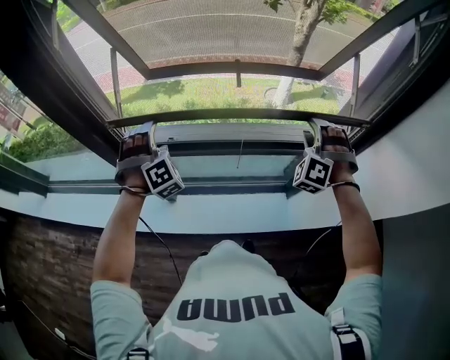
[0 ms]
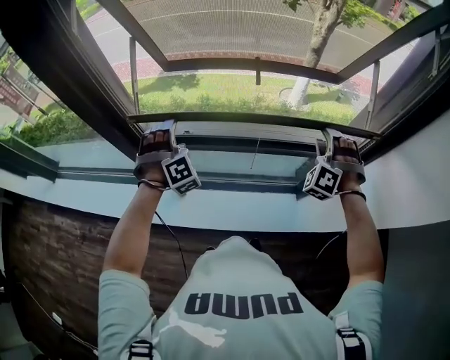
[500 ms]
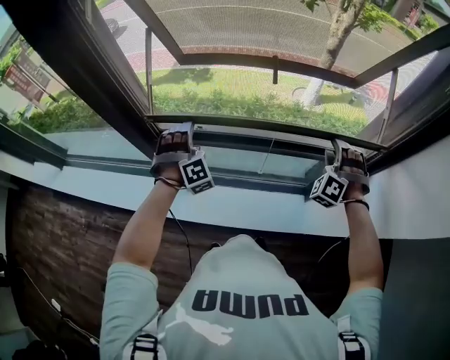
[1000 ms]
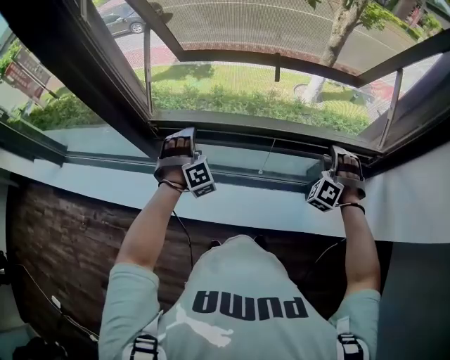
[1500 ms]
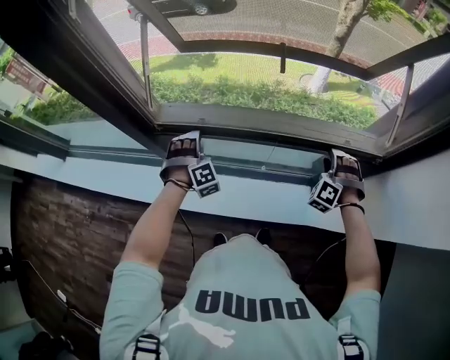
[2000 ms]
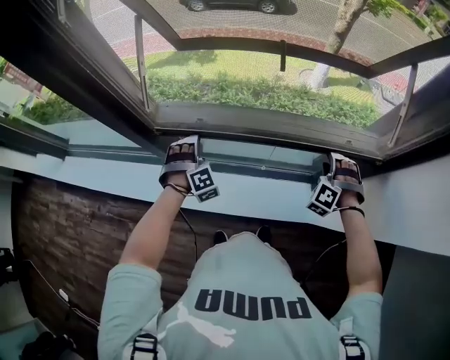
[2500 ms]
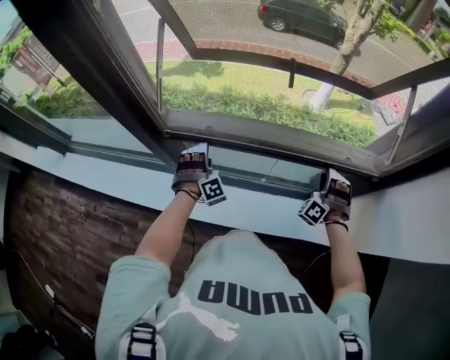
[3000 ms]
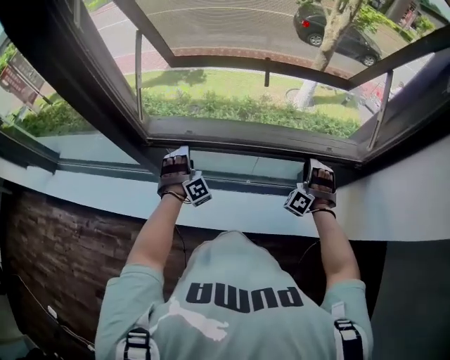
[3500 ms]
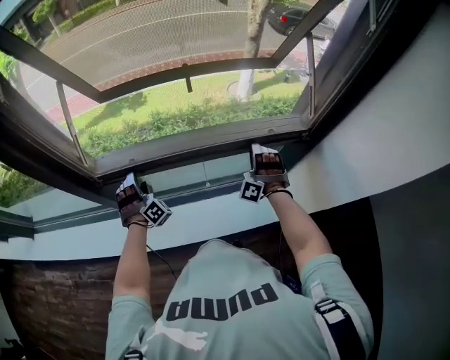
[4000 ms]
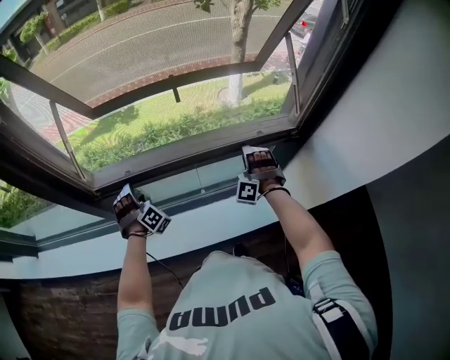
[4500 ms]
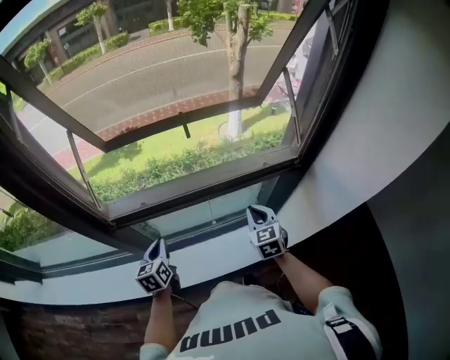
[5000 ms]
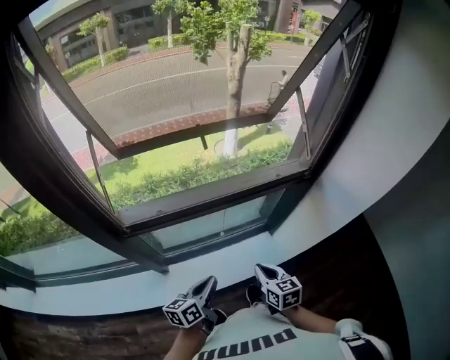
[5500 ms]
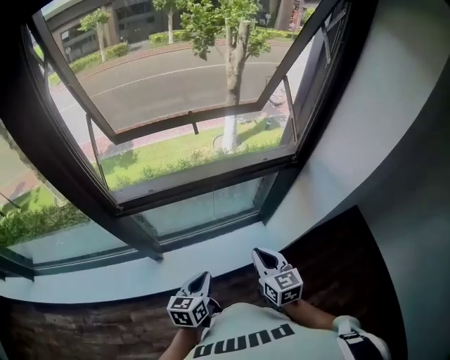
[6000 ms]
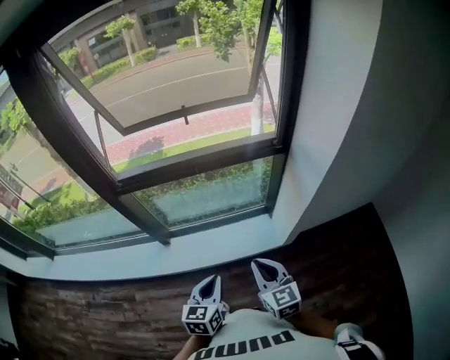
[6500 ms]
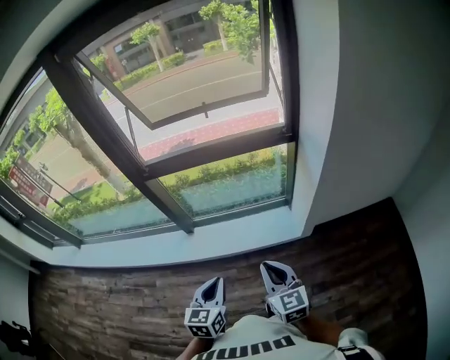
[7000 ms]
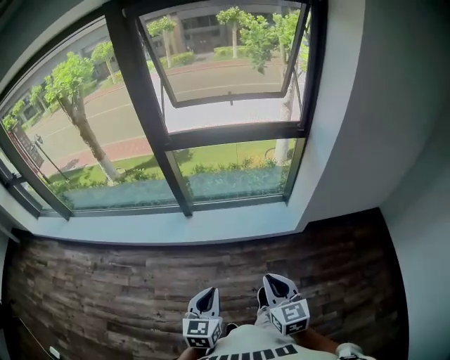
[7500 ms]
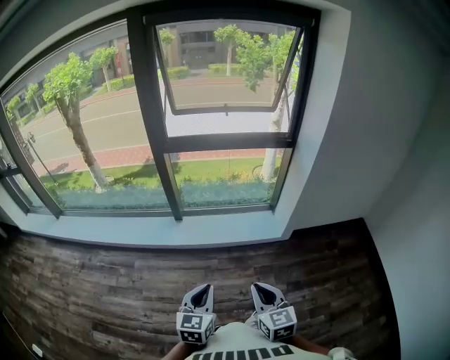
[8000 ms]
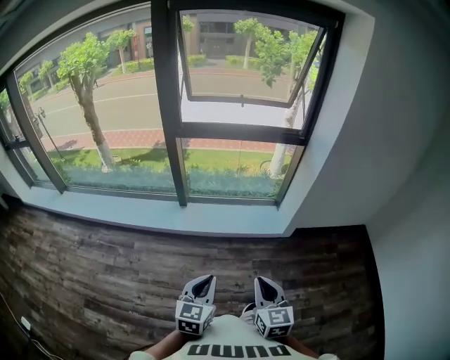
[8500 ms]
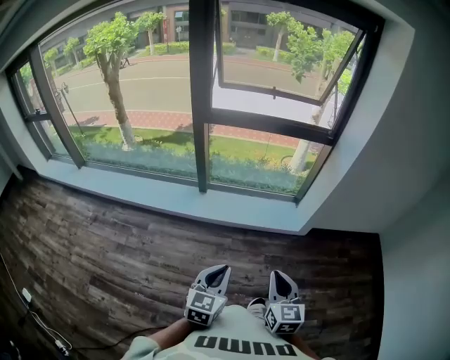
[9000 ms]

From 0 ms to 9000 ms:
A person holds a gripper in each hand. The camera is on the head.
From 0 ms to 2000 ms: The two grippers go roughly 15 cm downward.
From 4500 ms to 7000 ms: The pair of grippers is taken roughly 60 cm. The right gripper rotates around the line of its fingers by about 80 degrees, clockwise from behind, and closes up, while the left gripper rolls counterclockwise, seen from behind, by about 70 degrees, and closes its fingers.
From 7000 ms to 9000 ms: The two grippers go some 30 cm backward and to the left.

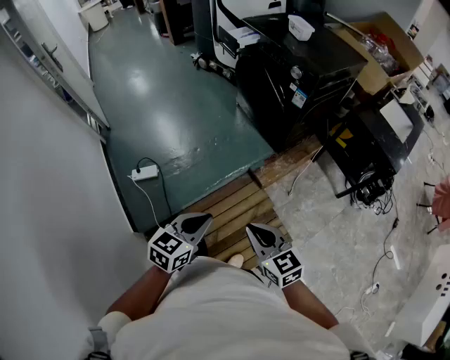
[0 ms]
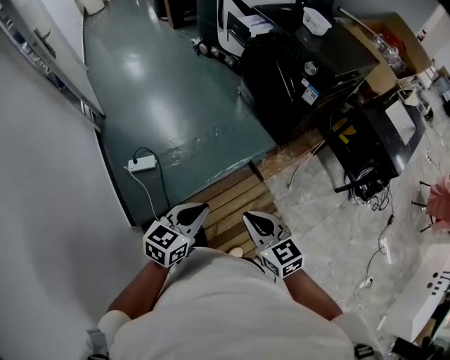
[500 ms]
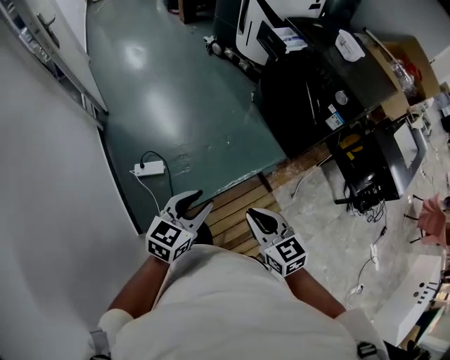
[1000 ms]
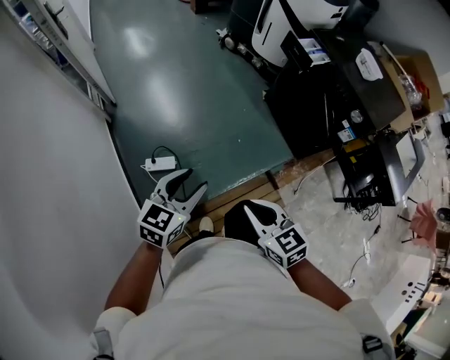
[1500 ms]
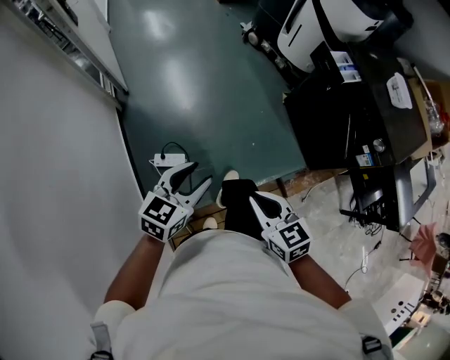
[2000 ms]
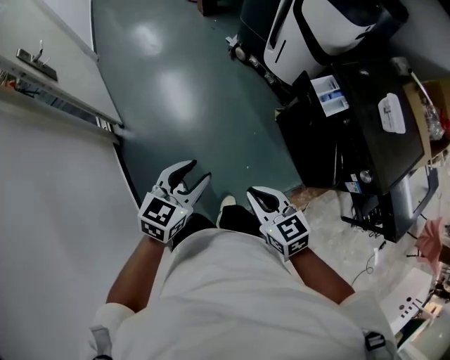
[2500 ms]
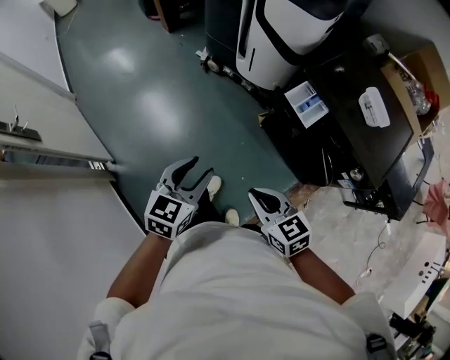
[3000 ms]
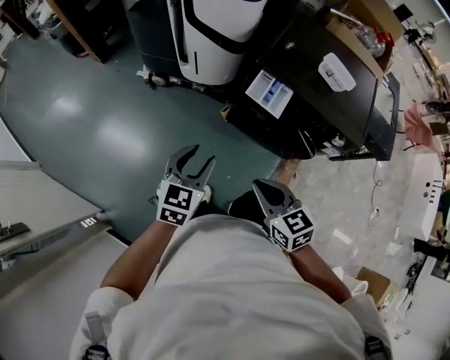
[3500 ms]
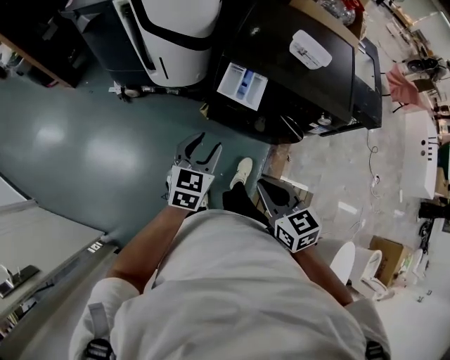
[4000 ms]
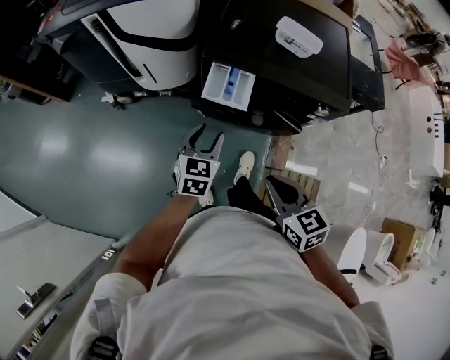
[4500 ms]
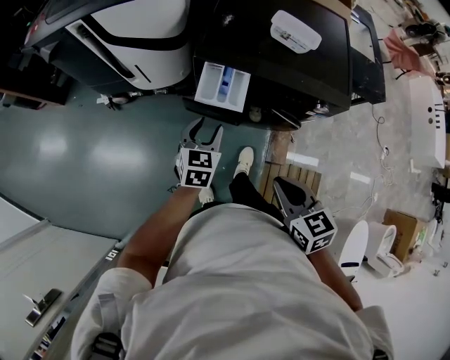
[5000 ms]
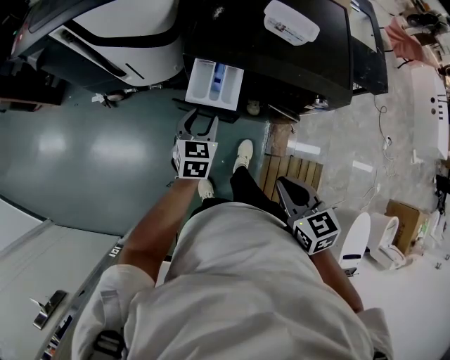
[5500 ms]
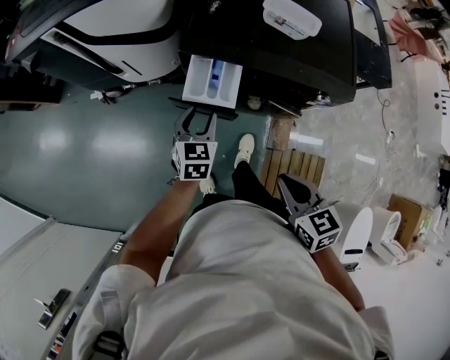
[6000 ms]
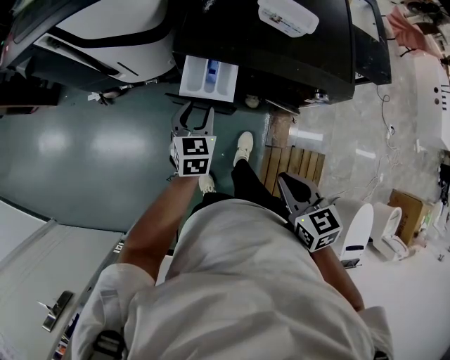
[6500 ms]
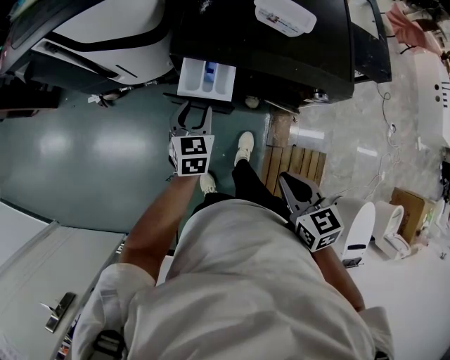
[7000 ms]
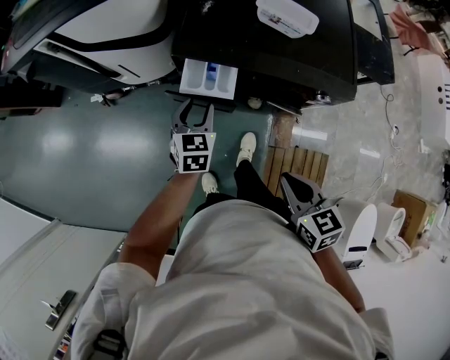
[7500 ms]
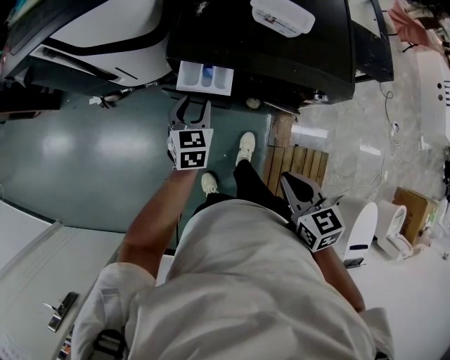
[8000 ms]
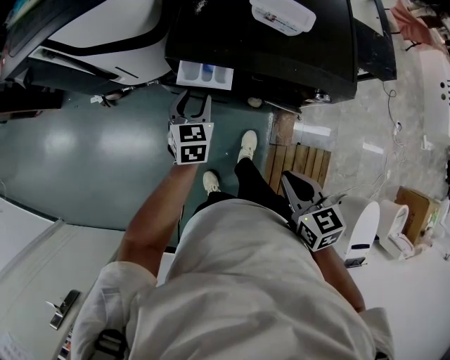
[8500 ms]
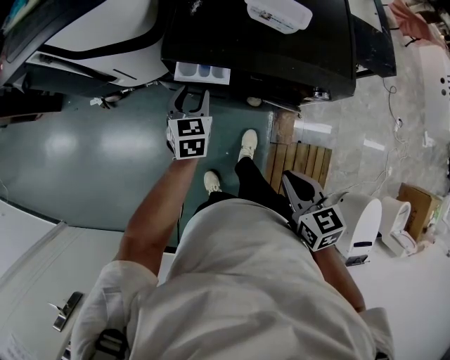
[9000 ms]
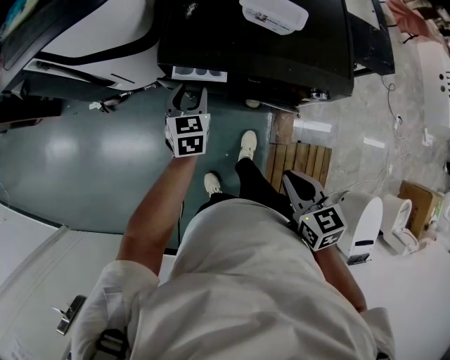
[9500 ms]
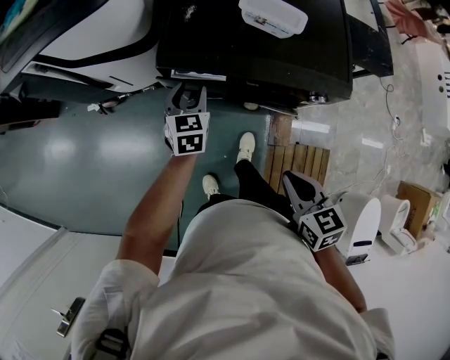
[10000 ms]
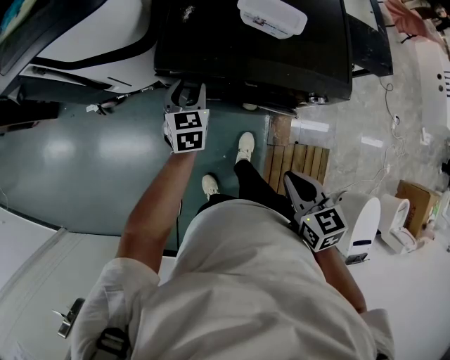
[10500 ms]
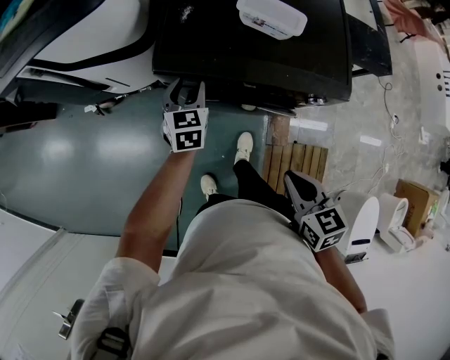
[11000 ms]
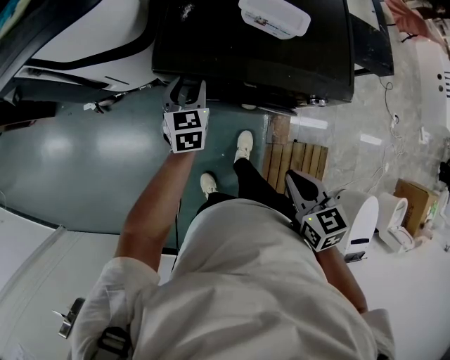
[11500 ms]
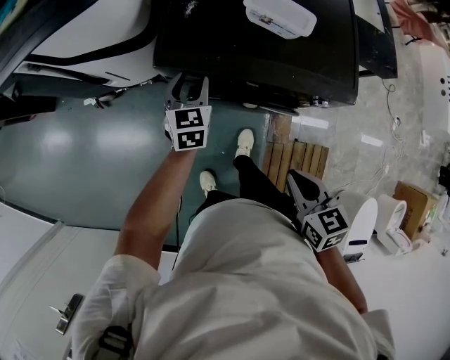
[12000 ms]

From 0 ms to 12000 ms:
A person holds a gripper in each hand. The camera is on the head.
From 0 ms to 2000 ms: The pair of grippers is taken forward and to the left, roughly 50 cm. The left gripper opens.
From 2000 ms to 4000 ms: The right gripper shifts by roughly 40 cm, and turns by about 60 degrees, while the left gripper moves roughly 50 cm, and swivels some 40 degrees.
From 4000 ms to 6000 ms: The right gripper travels to the right and forward by roughly 15 cm. The left gripper is displaced forward, downward and to the right by some 20 cm.
From 6000 ms to 8000 ms: The left gripper shifts by about 5 cm.
From 8000 ms to 10000 ms: The left gripper goes roughly 5 cm forward.
From 10000 ms to 12000 ms: The grippers stay close to where they were, moving slightly.

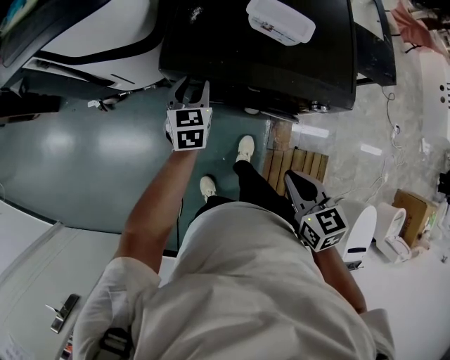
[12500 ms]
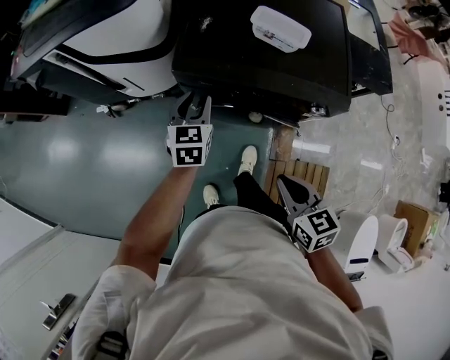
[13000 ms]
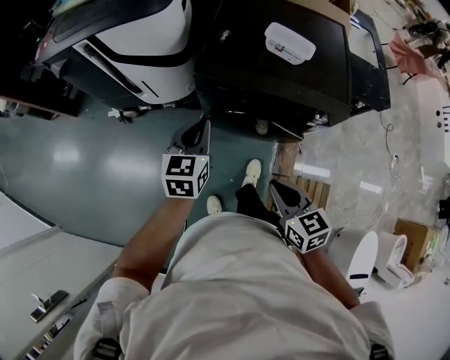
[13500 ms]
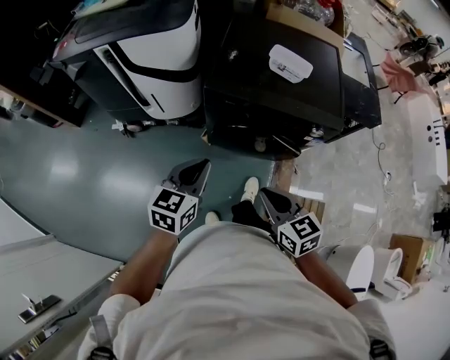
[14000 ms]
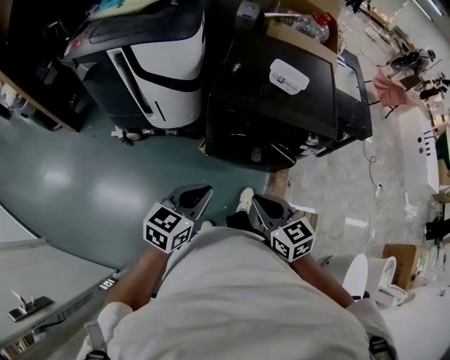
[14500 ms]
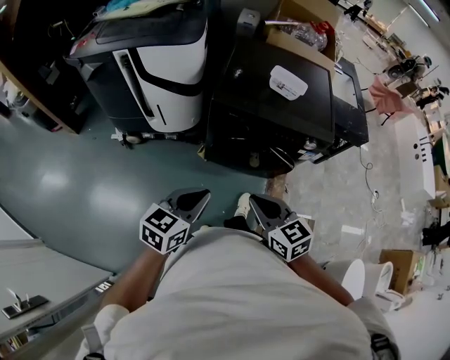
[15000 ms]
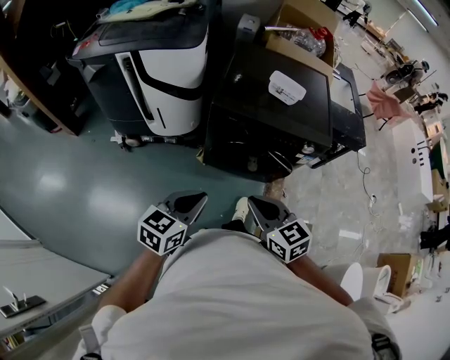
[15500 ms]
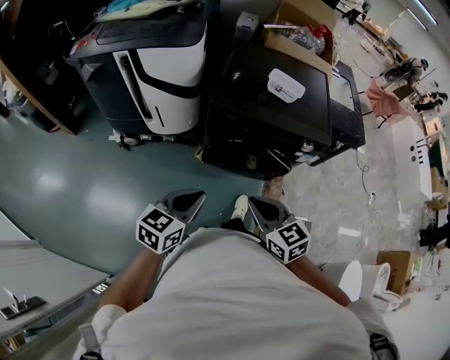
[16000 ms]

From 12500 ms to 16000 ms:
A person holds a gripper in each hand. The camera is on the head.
From 12500 ms to 14500 ms: The left gripper heads backward and upward, covering some 35 cm, changes its angle by roughly 30 degrees, and closes up. The right gripper is displaced to the left, backward and upward by about 20 cm.
From 14500 ms to 16000 ms: The grippers stay close to where they were, moving slightly.

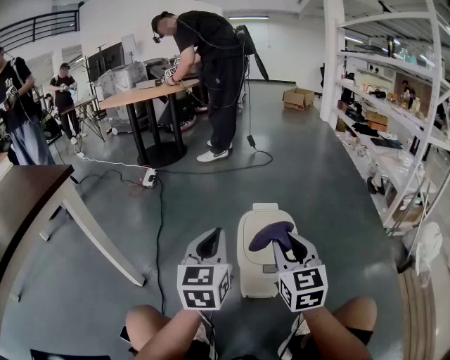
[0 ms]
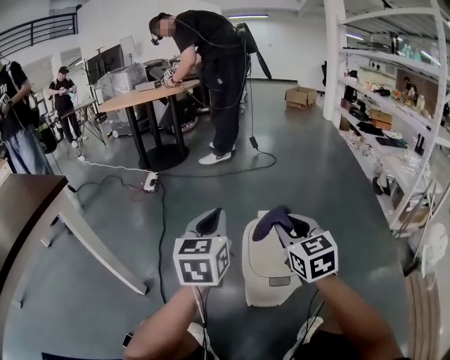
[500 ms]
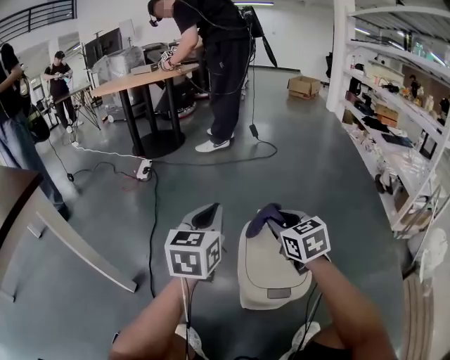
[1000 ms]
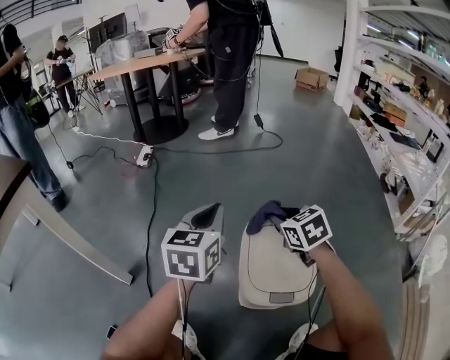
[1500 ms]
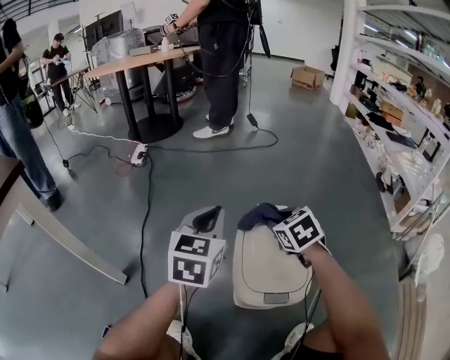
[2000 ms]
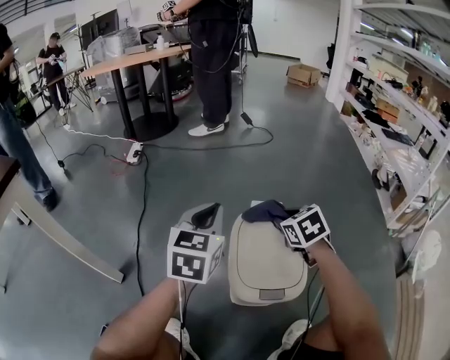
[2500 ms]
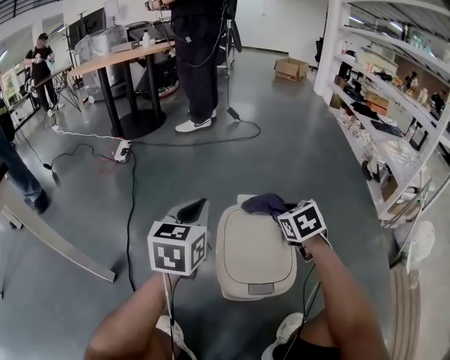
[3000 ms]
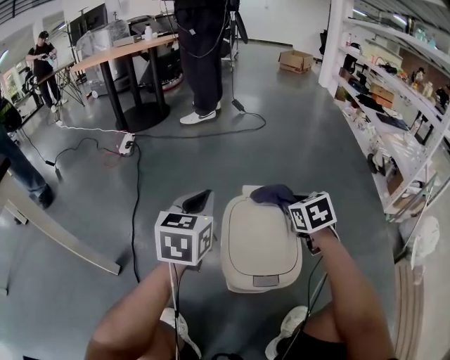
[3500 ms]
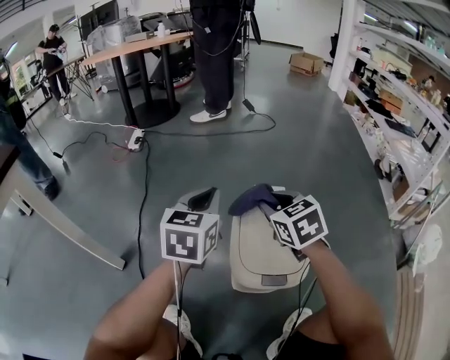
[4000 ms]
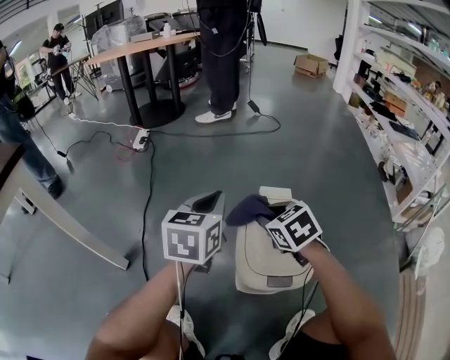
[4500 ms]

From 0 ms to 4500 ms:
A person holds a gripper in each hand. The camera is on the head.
From 0 ms to 2000 ms: The right gripper shifts about 30 cm forward and downward, and angles its fingers downward, by roughly 40 degrees. The left gripper travels forward by about 20 cm.
From 2000 ms to 4500 ms: The right gripper travels to the right and back again, about 10 cm each way.
